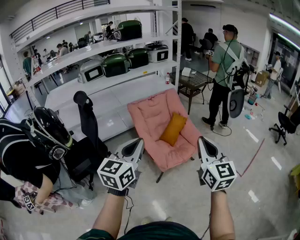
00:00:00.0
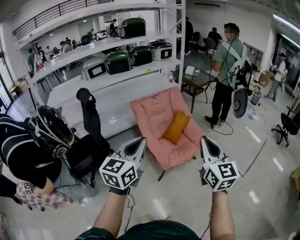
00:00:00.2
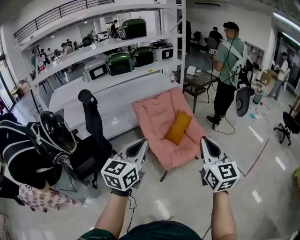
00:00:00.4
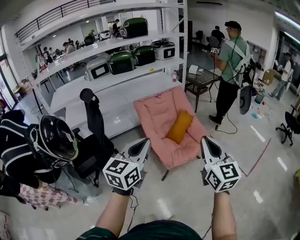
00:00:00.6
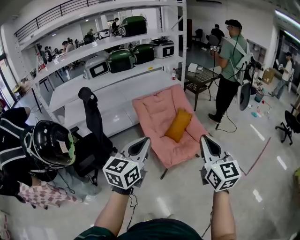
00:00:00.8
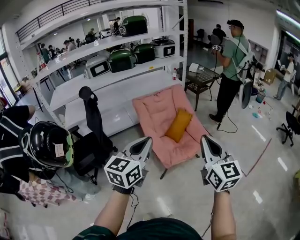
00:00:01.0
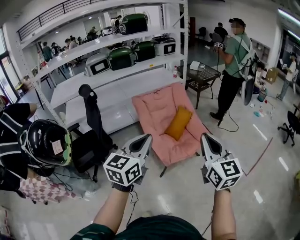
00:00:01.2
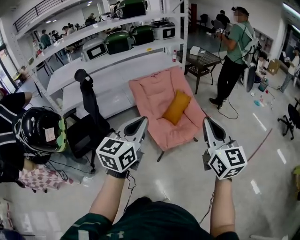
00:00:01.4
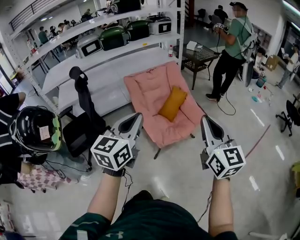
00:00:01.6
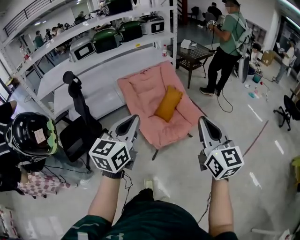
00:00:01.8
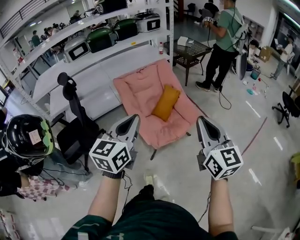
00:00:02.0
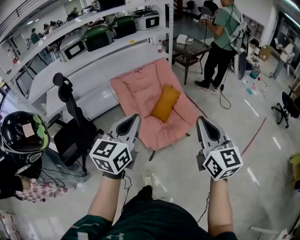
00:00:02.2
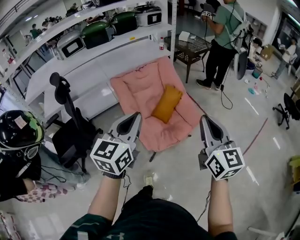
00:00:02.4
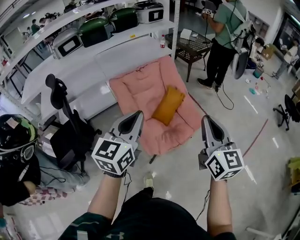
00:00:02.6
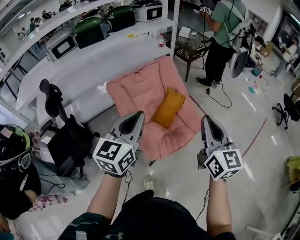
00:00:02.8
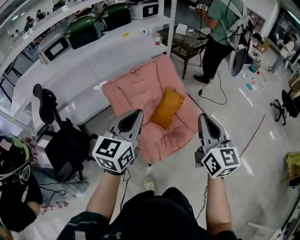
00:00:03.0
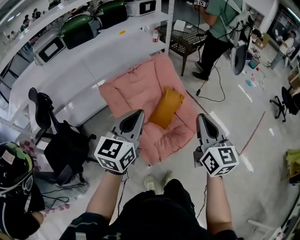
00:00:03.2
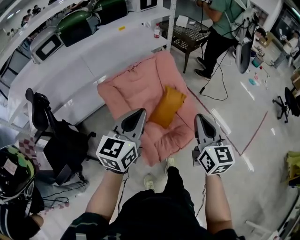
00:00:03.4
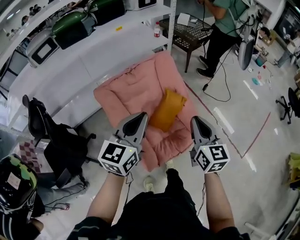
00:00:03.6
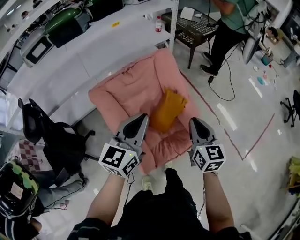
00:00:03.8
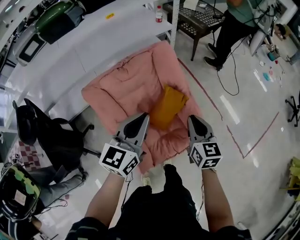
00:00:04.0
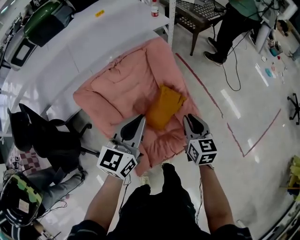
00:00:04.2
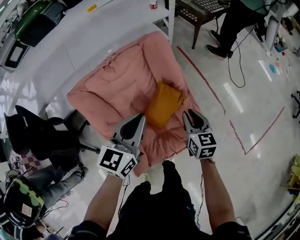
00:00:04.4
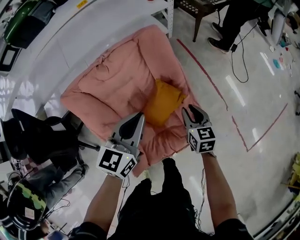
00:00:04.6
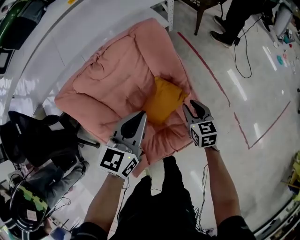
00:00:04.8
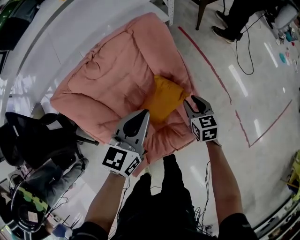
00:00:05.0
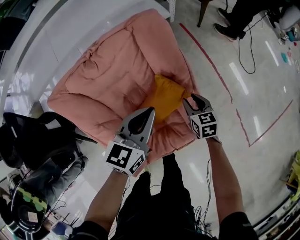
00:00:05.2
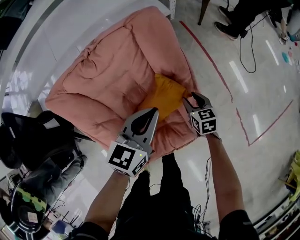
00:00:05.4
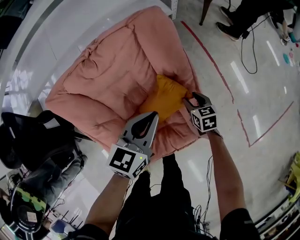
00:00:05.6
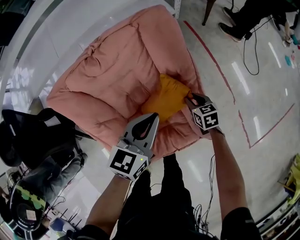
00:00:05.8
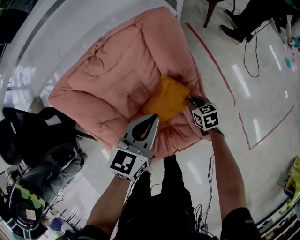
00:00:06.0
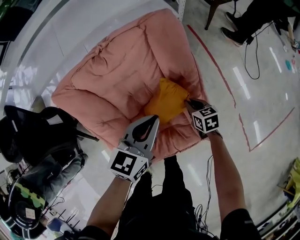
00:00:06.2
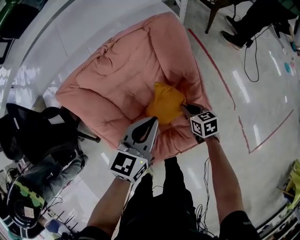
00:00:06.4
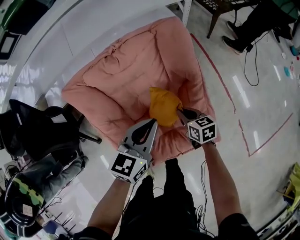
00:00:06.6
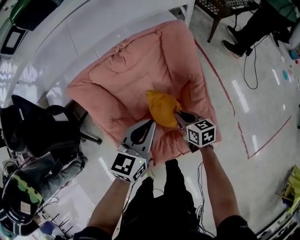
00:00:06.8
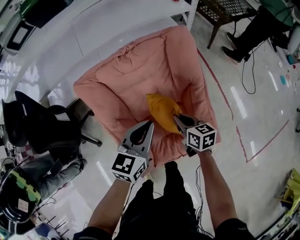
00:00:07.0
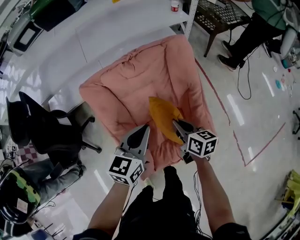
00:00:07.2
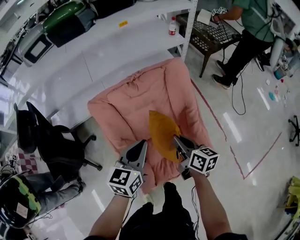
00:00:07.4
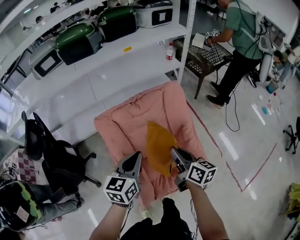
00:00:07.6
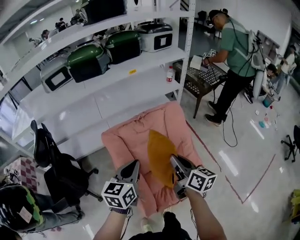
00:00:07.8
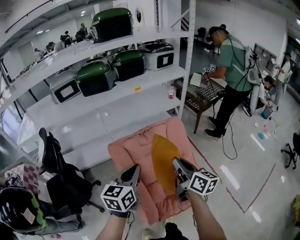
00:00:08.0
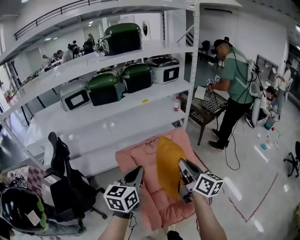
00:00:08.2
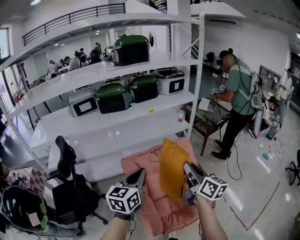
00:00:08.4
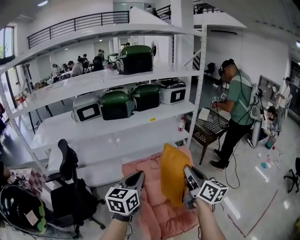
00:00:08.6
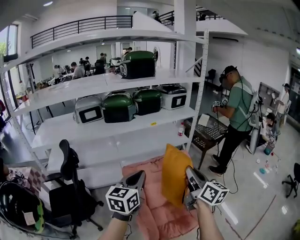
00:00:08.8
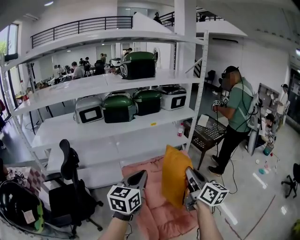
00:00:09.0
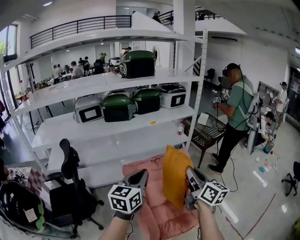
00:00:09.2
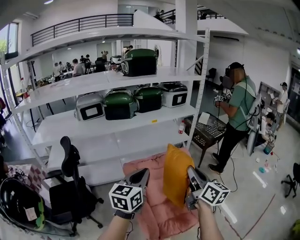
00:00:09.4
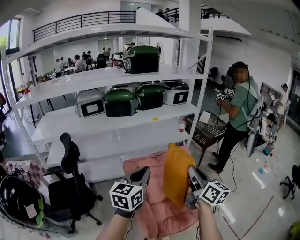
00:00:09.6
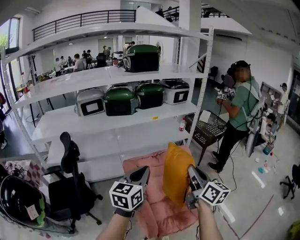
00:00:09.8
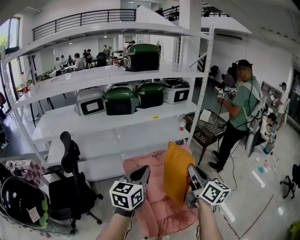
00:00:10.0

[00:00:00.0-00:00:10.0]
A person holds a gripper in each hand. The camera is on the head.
00:00:00.0 to 00:00:01.4: Both grippers travel together to the right, roughly 5 cm.
00:00:01.4 to 00:00:02.8: The grippers both shift forward by some 30 cm.
00:00:02.8 to 00:00:04.2: Both grippers move forward and downward, approximately 40 cm. The right gripper rotates roughly 30 degrees.
00:00:04.2 to 00:00:05.8: The right gripper heads downward and forward, covering approximately 35 cm, and swivels some 30 degrees; the left gripper shifts some 20 cm downward and forward.
00:00:05.8 to 00:00:07.2: The right gripper heads upward and to the left, covering some 30 cm, swivels about 30 degrees, and closes, while the left gripper heads to the left, upward and backward, covering roughly 20 cm.
00:00:07.2 to 00:00:08.6: The right gripper heads upward, covering some 40 cm, and rotates about 30 degrees. The left gripper moves upward and to the left, roughly 35 cm.
00:00:08.6 to 00:00:10.0: The grippers stay close to where they were, moving slightly.

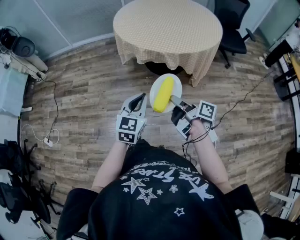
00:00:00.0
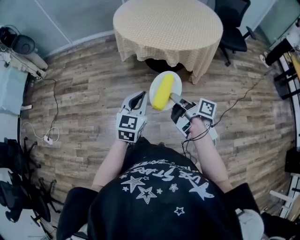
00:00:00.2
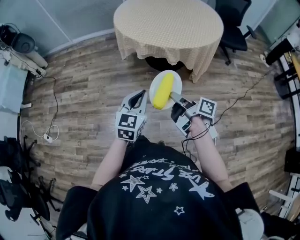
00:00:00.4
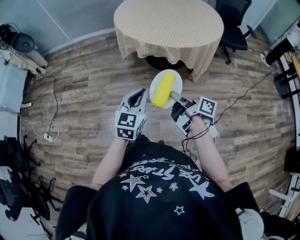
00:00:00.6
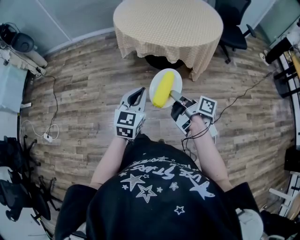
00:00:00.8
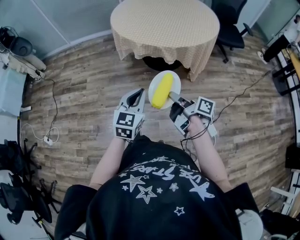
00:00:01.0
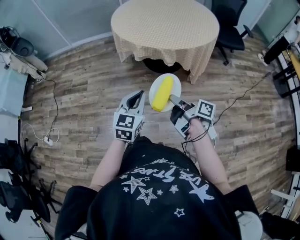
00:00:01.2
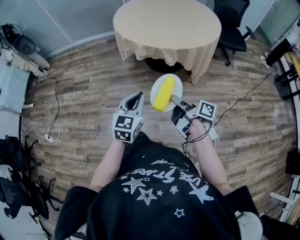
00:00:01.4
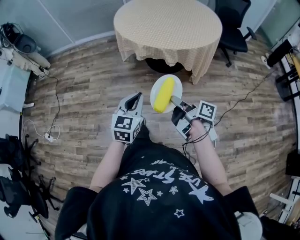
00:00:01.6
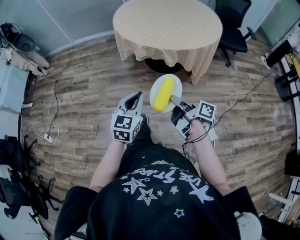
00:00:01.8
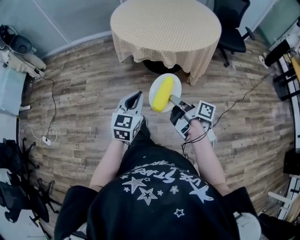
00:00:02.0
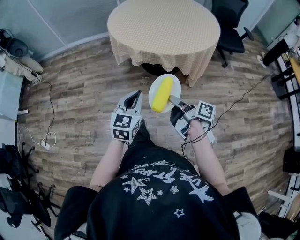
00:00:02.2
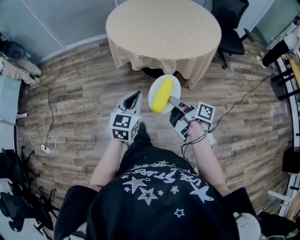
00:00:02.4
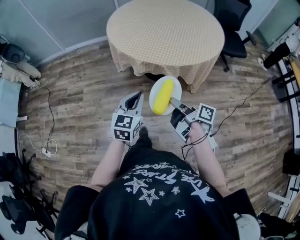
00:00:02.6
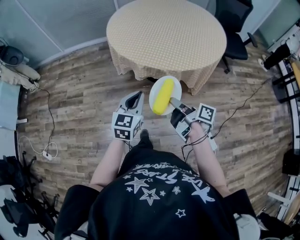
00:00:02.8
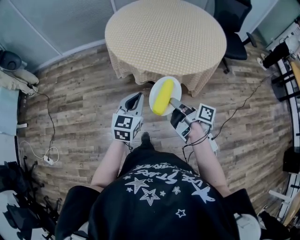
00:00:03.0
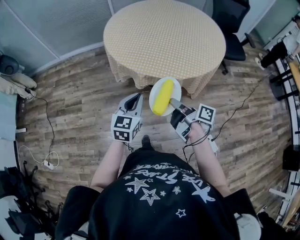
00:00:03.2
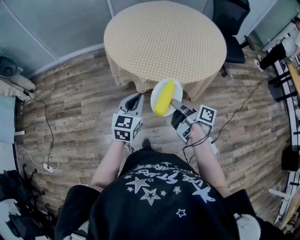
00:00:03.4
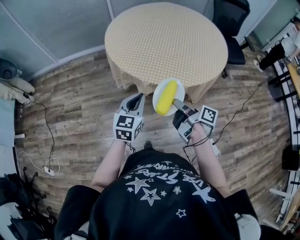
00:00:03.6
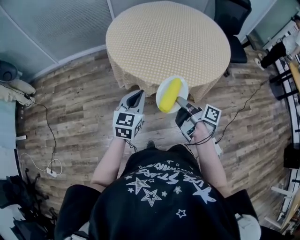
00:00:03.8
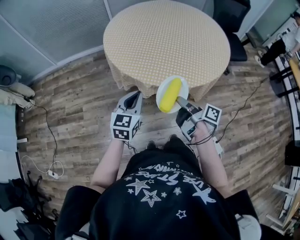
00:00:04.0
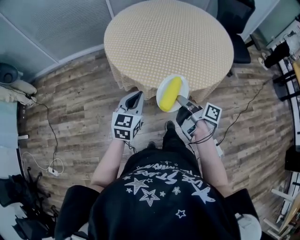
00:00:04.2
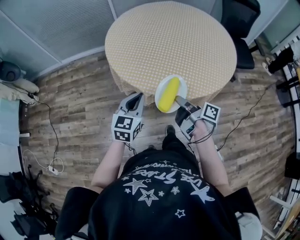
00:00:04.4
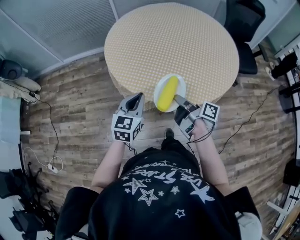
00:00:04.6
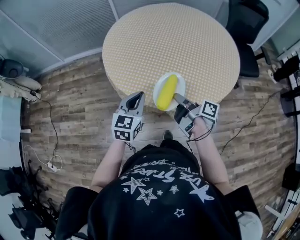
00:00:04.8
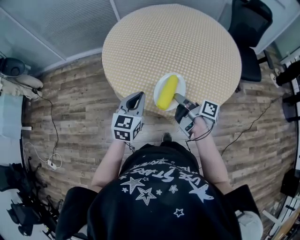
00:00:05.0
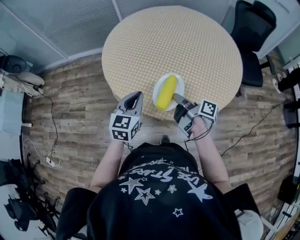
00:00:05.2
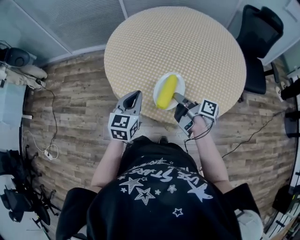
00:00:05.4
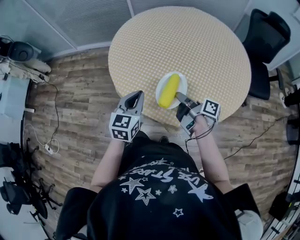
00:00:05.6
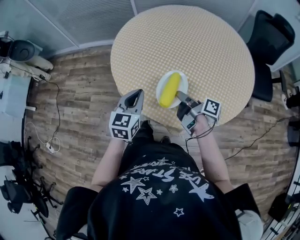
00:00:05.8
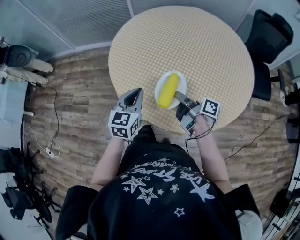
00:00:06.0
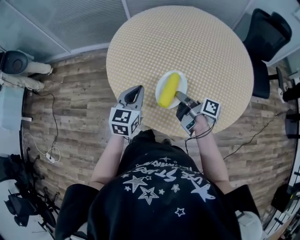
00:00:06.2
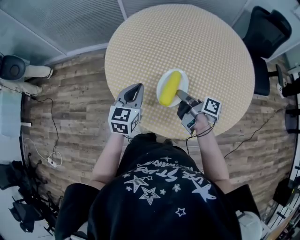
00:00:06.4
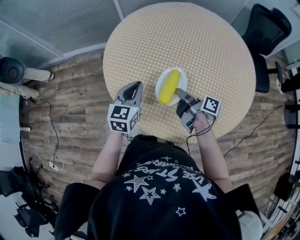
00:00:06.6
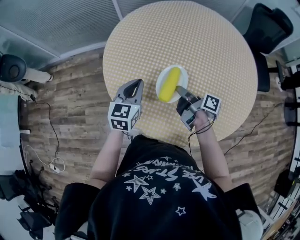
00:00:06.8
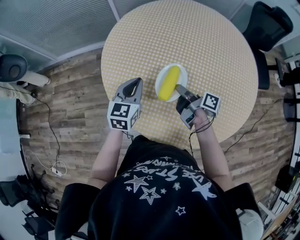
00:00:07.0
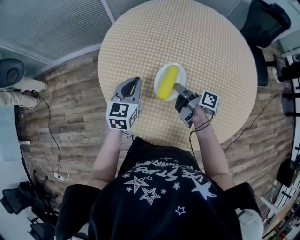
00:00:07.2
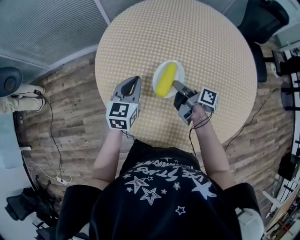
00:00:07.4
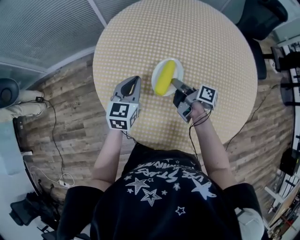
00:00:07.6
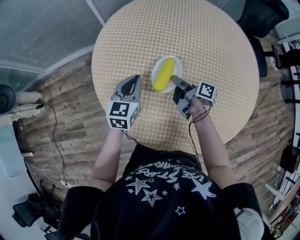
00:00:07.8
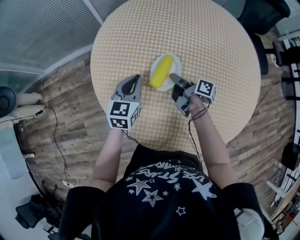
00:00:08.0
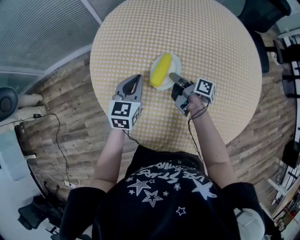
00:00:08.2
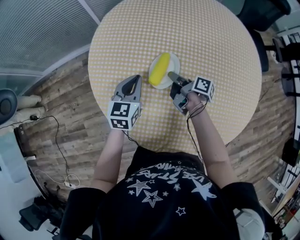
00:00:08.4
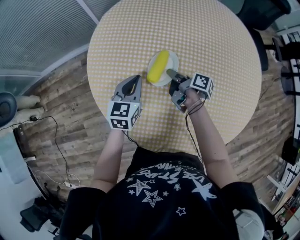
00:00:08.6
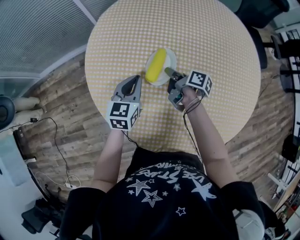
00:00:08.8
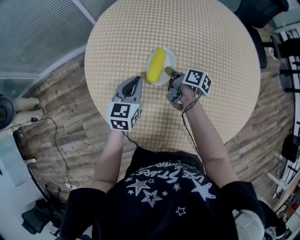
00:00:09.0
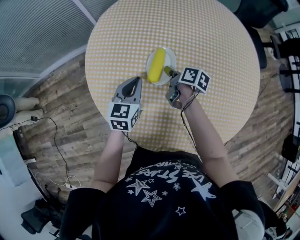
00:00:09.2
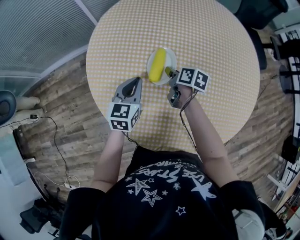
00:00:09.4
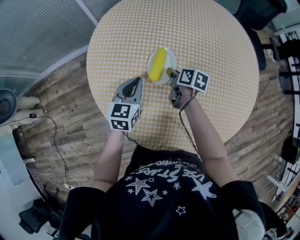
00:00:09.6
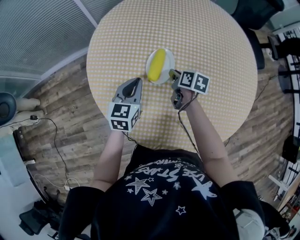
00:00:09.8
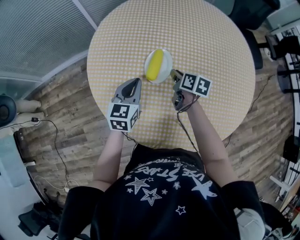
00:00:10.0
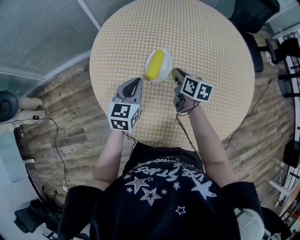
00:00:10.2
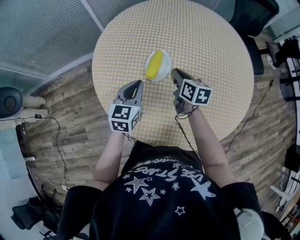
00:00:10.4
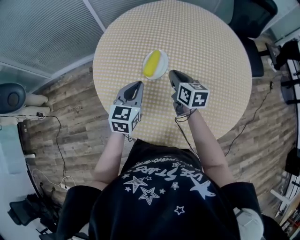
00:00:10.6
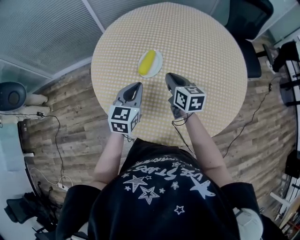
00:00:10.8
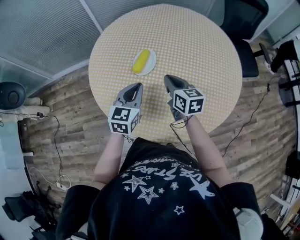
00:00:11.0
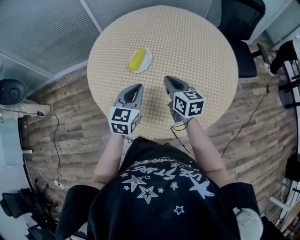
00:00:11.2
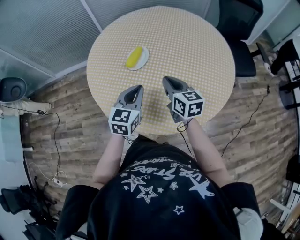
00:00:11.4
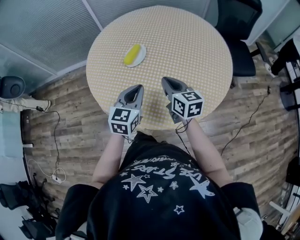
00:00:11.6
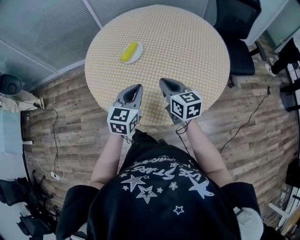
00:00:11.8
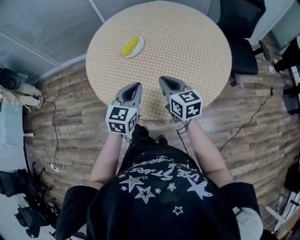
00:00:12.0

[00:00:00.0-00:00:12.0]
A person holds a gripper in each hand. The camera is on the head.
00:00:00.0 to 00:00:01.6: The grippers make only small movements.
00:00:01.6 to 00:00:03.0: The grippers both shift forward by roughly 20 cm.
00:00:03.0 to 00:00:04.4: Both grippers travel together forward, about 15 cm.
00:00:04.4 to 00:00:06.0: Both grippers travel together forward, approximately 20 cm.
00:00:06.0 to 00:00:07.6: Both grippers move forward, roughly 25 cm.
00:00:07.6 to 00:00:09.0: The right gripper travels forward and downward by some 10 cm. Meanwhile the left gripper moves roughly 5 cm.
00:00:09.0 to 00:00:10.4: The left gripper heads backward and upward, covering about 10 cm. Meanwhile the right gripper shifts approximately 10 cm upward and backward, and rotates roughly 40 degrees.
00:00:10.4 to 00:00:12.0: Both grippers travel together backward and to the right, some 25 cm. The right gripper swivels roughly 30 degrees.

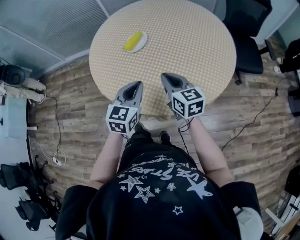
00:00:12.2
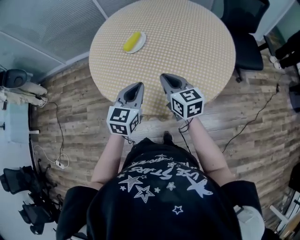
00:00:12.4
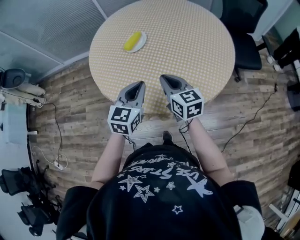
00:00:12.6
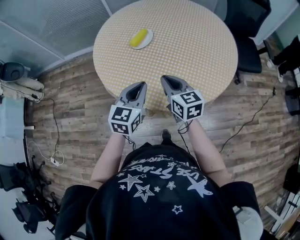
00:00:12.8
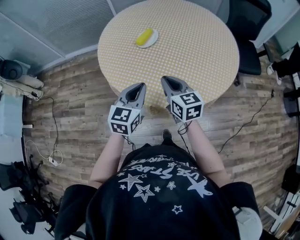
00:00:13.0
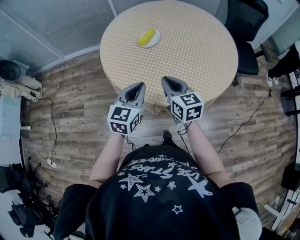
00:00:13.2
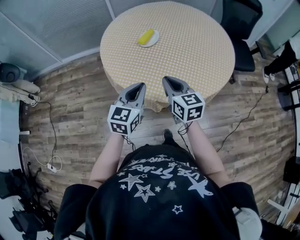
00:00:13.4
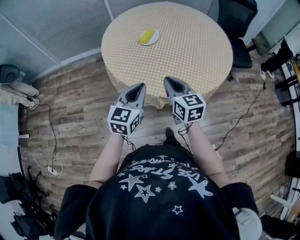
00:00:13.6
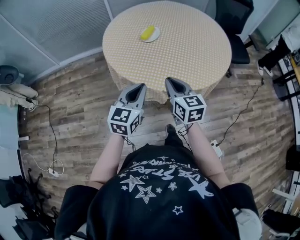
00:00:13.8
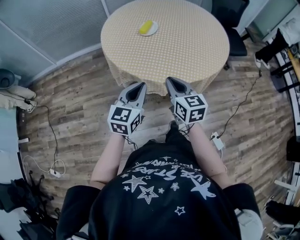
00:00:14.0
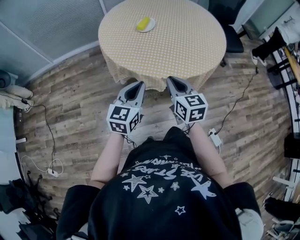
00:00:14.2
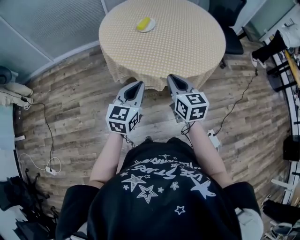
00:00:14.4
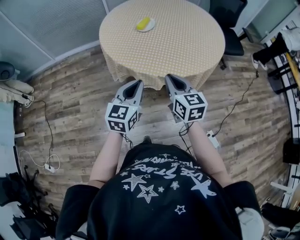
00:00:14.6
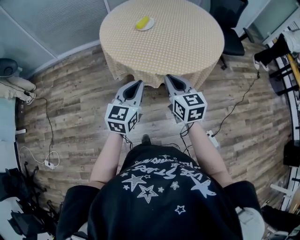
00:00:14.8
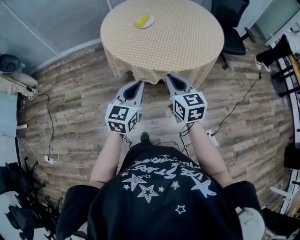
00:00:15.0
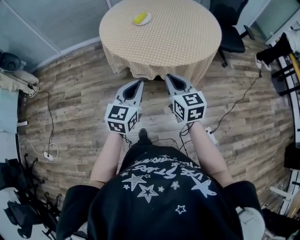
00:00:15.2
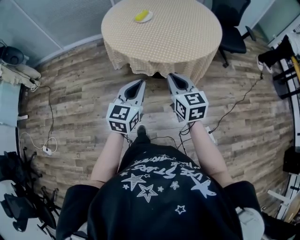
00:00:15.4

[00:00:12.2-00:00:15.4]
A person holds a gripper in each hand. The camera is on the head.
00:00:12.2 to 00:00:13.8: The left gripper heads to the left and backward, covering roughly 20 cm. The right gripper shifts some 20 cm backward and to the left.
00:00:13.8 to 00:00:15.4: Both grippers move backward and to the right, roughly 20 cm.
